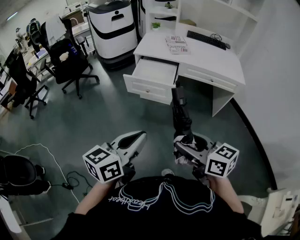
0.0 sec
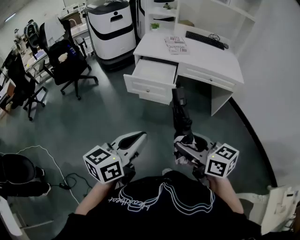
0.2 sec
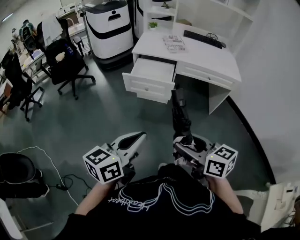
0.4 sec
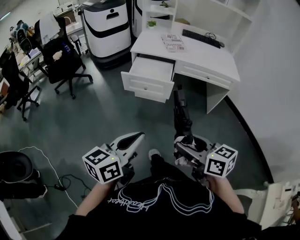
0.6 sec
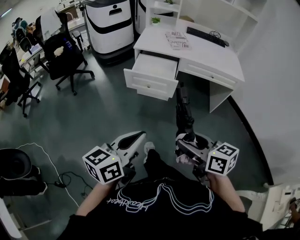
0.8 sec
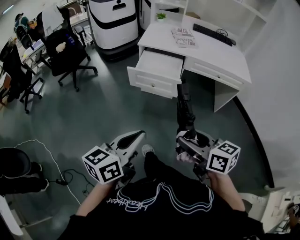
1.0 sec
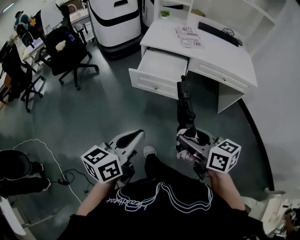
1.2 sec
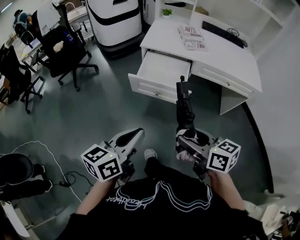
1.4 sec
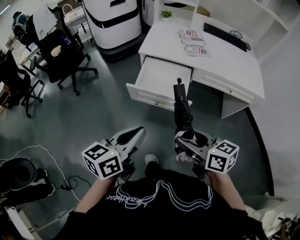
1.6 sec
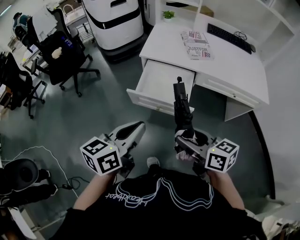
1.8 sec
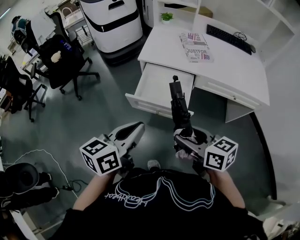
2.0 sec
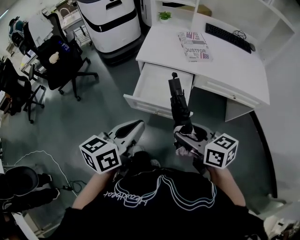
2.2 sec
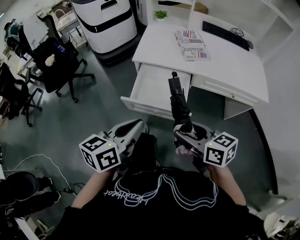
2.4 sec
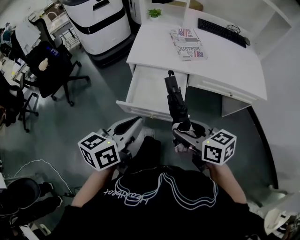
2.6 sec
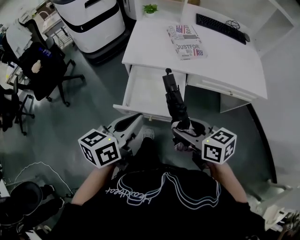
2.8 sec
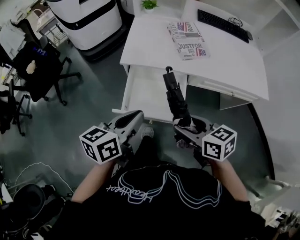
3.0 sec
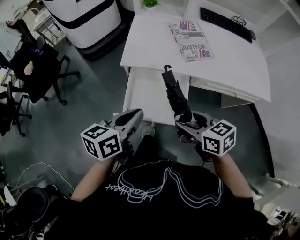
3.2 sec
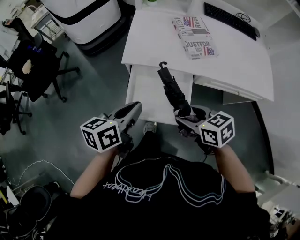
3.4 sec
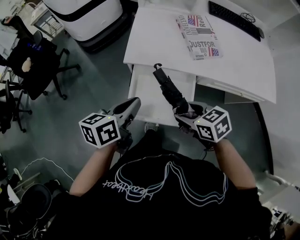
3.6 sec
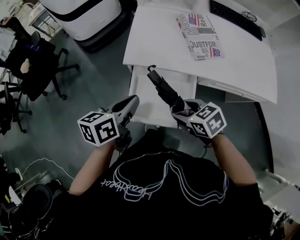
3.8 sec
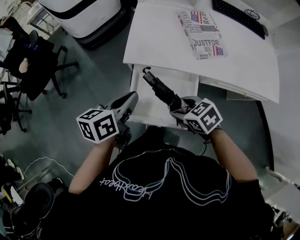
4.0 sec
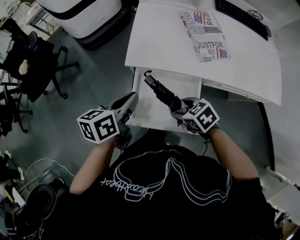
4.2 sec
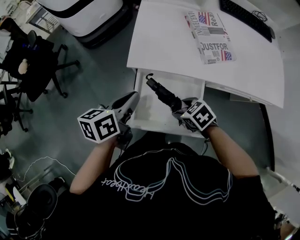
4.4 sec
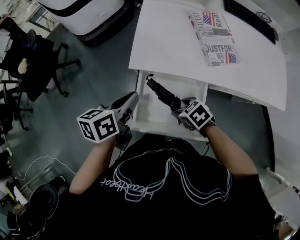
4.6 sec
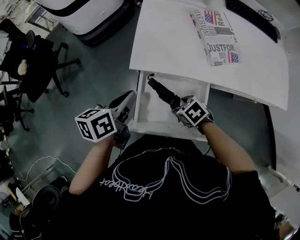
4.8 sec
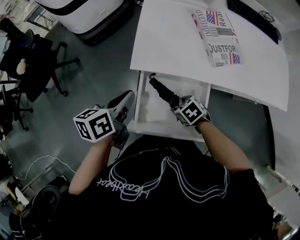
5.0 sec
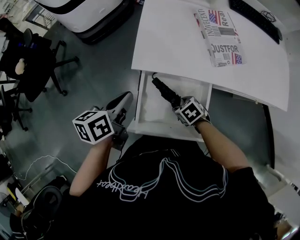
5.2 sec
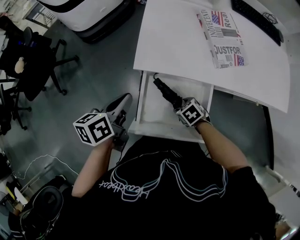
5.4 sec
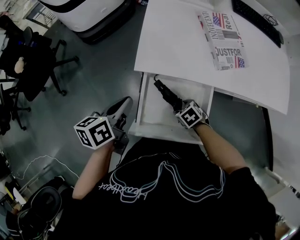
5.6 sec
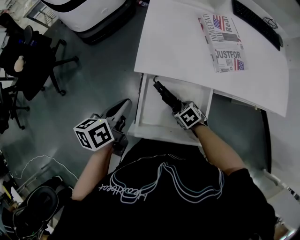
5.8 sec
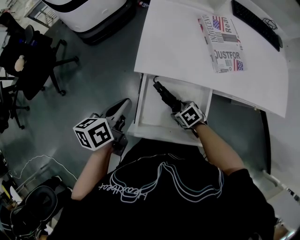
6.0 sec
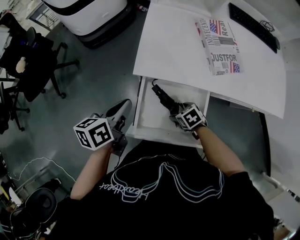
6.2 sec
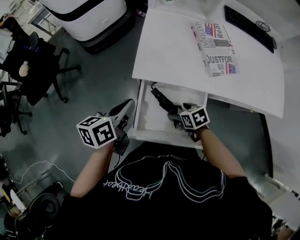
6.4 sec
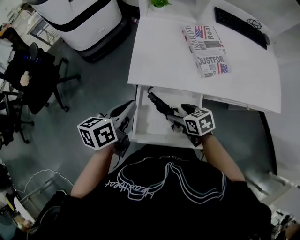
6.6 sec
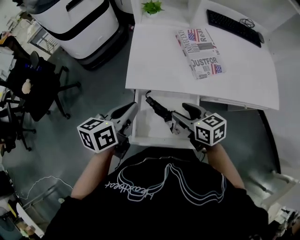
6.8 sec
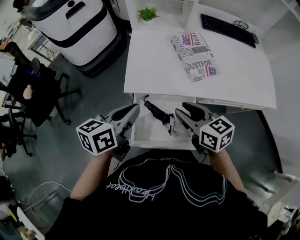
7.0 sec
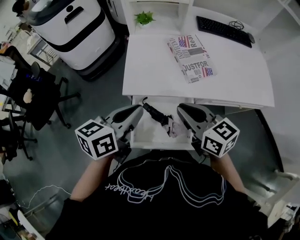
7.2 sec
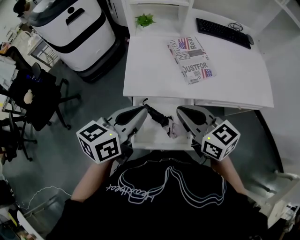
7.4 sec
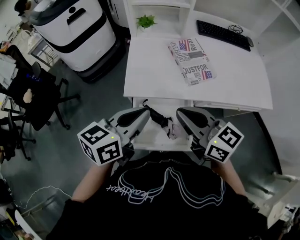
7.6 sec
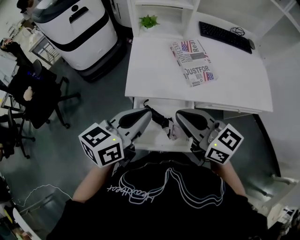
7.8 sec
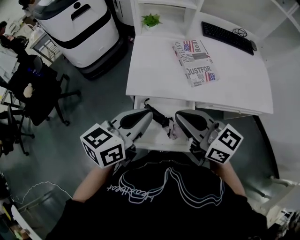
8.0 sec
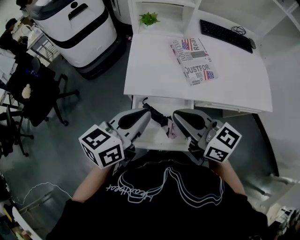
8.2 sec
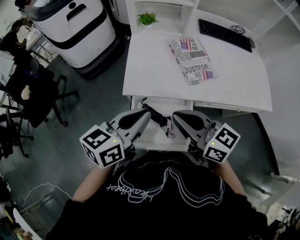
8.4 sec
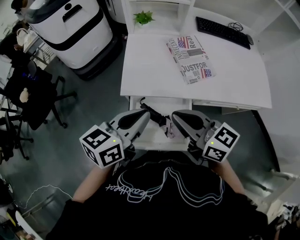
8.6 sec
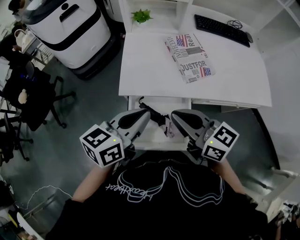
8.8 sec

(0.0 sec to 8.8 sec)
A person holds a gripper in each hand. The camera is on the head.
0.0 sec - 1.4 sec: The right gripper moves forward, some 15 cm, while the left gripper is displaced forward, to the left and downward by some 15 cm.
1.4 sec - 3.0 sec: The grippers both shift forward by some 30 cm.
3.0 sec - 4.4 sec: The right gripper moves downward and forward, about 20 cm, and tilts its fingers approximately 30 degrees downward; the left gripper goes approximately 20 cm forward and downward.
4.4 sec - 5.8 sec: The left gripper moves approximately 10 cm. The right gripper is displaced downward by roughly 15 cm.
5.8 sec - 7.4 sec: The left gripper moves upward, some 20 cm, and changes its angle by roughly 30 degrees. The right gripper shifts roughly 40 cm upward, points its fingers some 60 degrees further upward, and closes up.
7.4 sec - 8.8 sec: The grippers stay close to where they were, moving slightly.

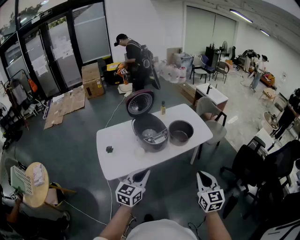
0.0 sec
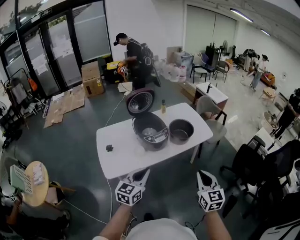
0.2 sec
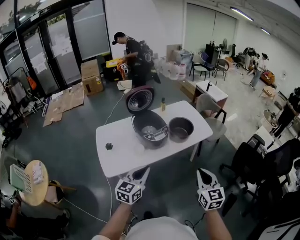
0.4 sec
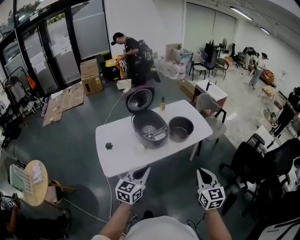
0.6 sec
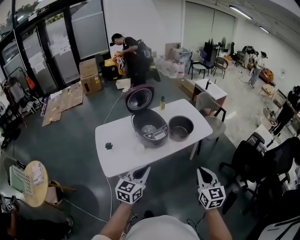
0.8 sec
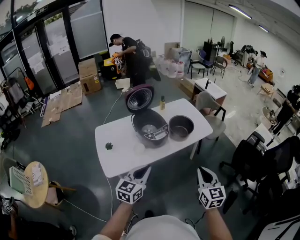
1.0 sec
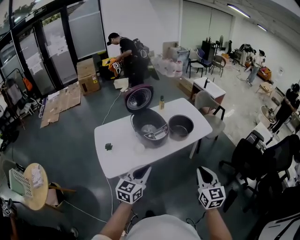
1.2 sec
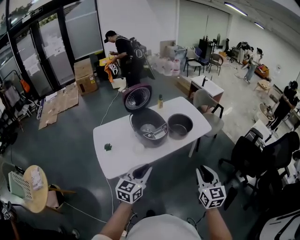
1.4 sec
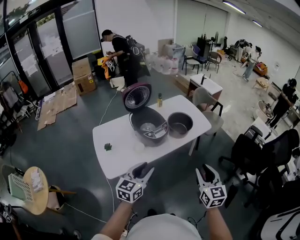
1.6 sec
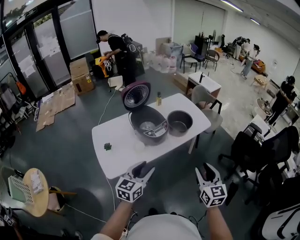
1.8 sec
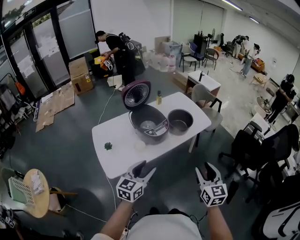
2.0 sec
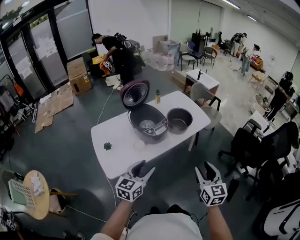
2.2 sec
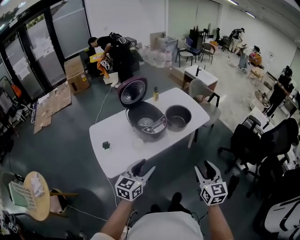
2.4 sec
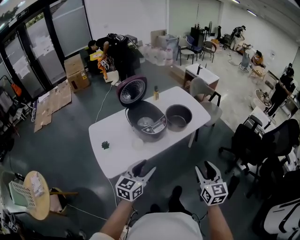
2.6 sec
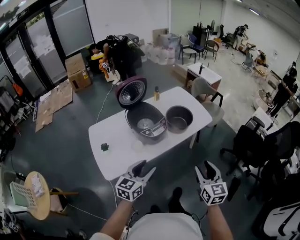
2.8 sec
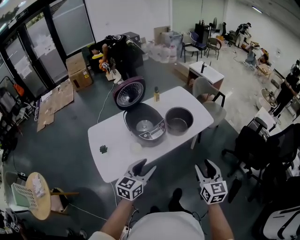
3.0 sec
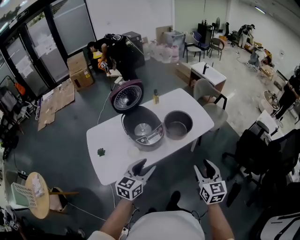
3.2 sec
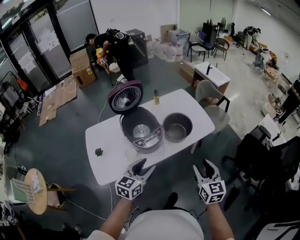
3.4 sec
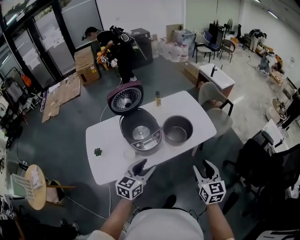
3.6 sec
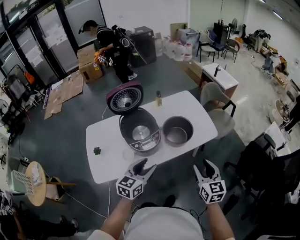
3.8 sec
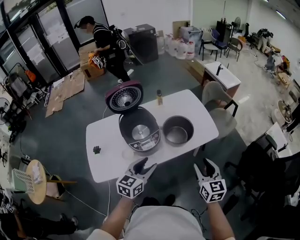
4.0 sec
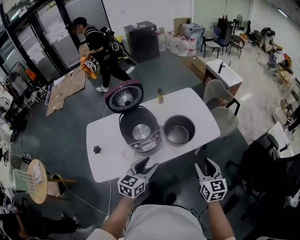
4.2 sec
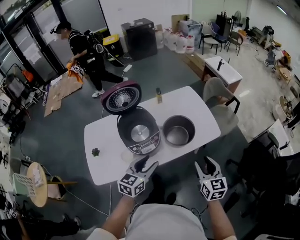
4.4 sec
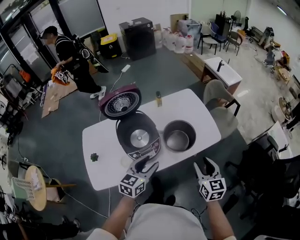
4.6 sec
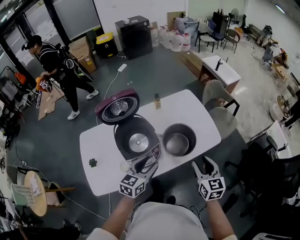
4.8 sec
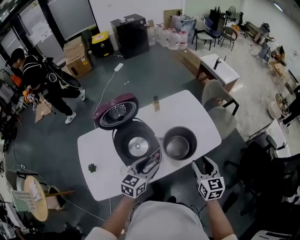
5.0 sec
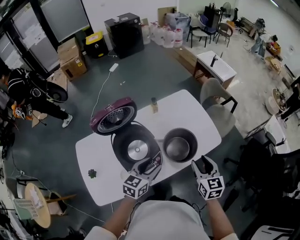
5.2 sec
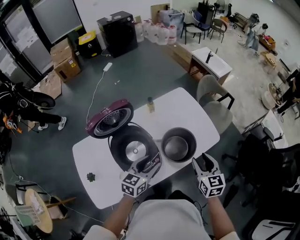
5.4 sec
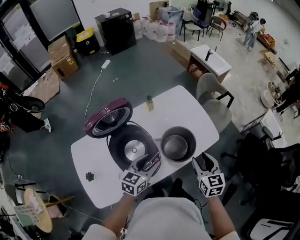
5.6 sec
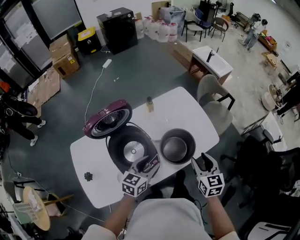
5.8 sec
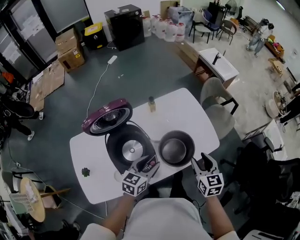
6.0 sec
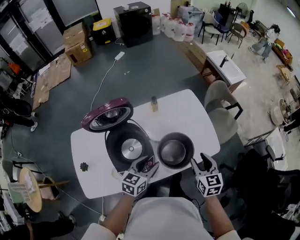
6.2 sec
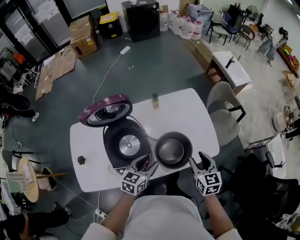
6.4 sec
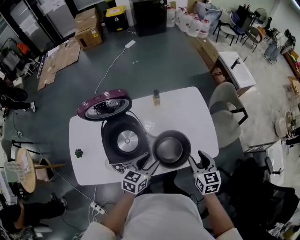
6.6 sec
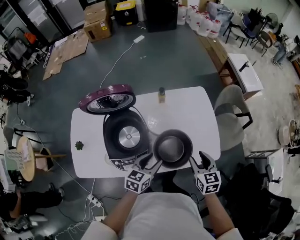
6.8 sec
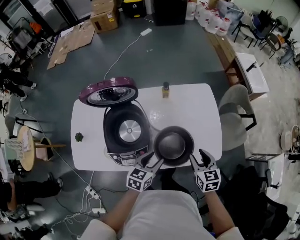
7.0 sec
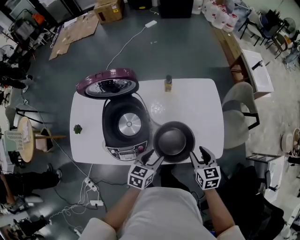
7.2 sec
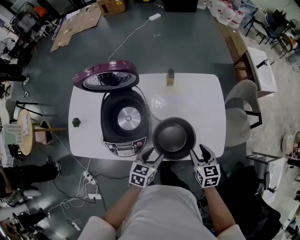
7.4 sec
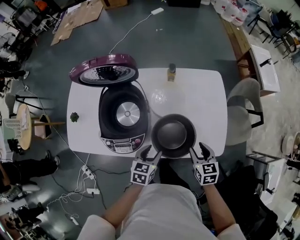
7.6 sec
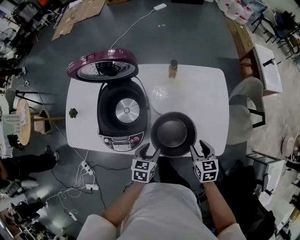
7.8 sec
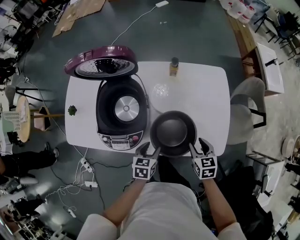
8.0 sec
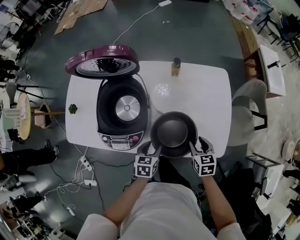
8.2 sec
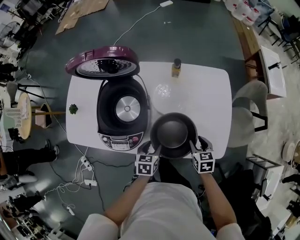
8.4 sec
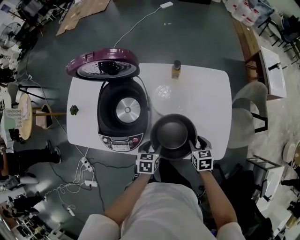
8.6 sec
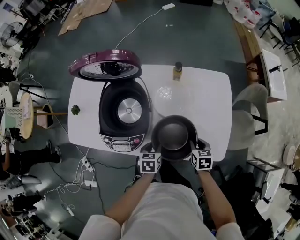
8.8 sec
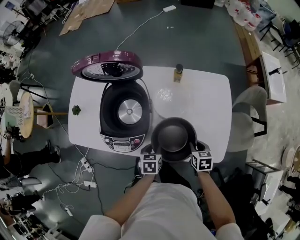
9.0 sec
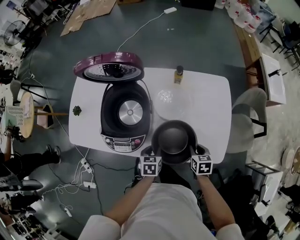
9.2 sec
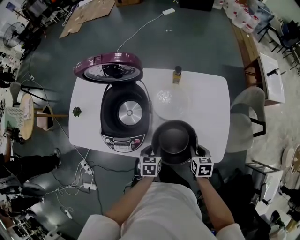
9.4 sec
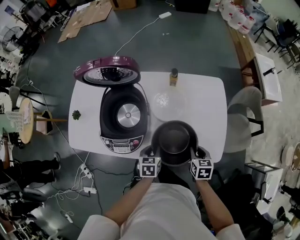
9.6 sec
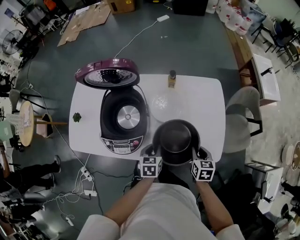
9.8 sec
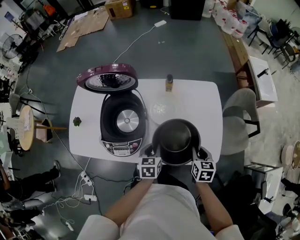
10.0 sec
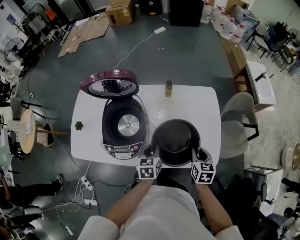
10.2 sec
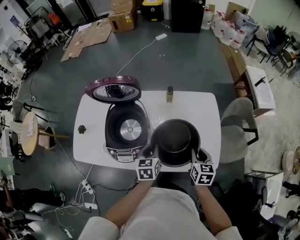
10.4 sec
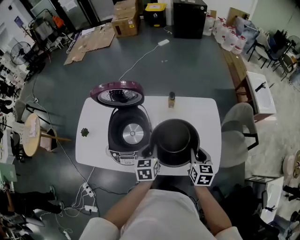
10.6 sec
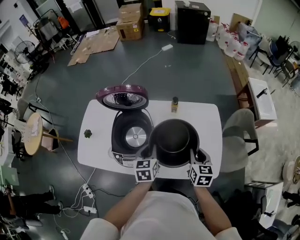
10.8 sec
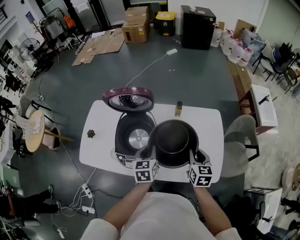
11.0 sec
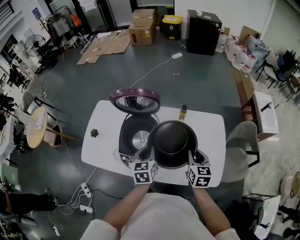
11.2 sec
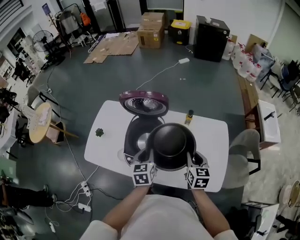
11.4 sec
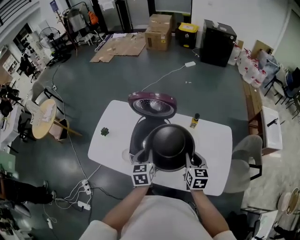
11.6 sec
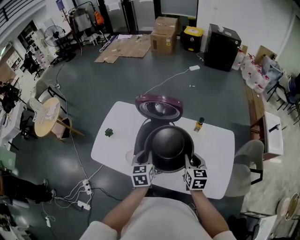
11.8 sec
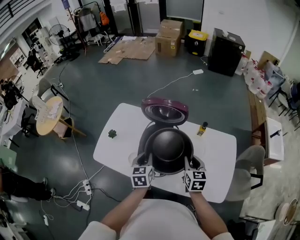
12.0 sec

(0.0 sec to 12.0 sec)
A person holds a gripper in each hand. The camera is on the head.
0.0 sec - 1.6 sec: The left gripper opens its fingers. Meanwhile the right gripper opens.
1.6 sec - 3.0 sec: Both grippers move forward, approximately 10 cm.
3.0 sec - 4.4 sec: The left gripper heads forward and to the right, covering approximately 20 cm. The right gripper heads forward, covering approximately 20 cm.
4.4 sec - 6.0 sec: Both grippers travel together forward, about 20 cm.
6.0 sec - 7.6 sec: Both grippers travel together downward, some 15 cm. The right gripper rotates approximately 30 degrees. Meanwhile the left gripper swivels about 40 degrees.
7.6 sec - 9.0 sec: The grippers both shift downward by approximately 10 cm. The left gripper changes its angle by some 20 degrees; the right gripper closes up.
9.0 sec - 10.4 sec: The right gripper travels upward by about 15 cm, and swivels about 20 degrees. Meanwhile the left gripper heads upward and forward, covering approximately 15 cm, and turns by about 20 degrees.
10.4 sec - 12.0 sec: The left gripper is displaced to the left and upward by roughly 20 cm, and changes its angle by about 20 degrees; the right gripper is displaced to the left, forward and upward by roughly 25 cm, and swivels approximately 20 degrees.

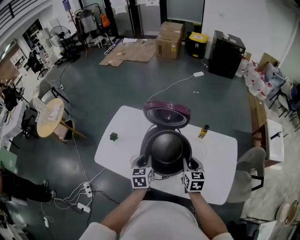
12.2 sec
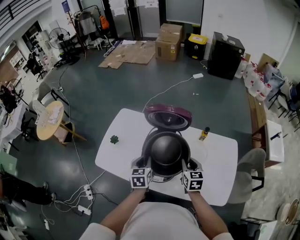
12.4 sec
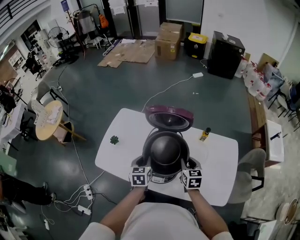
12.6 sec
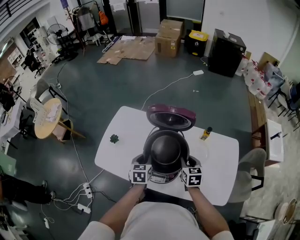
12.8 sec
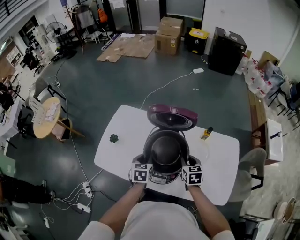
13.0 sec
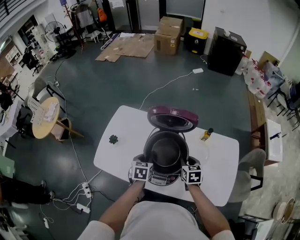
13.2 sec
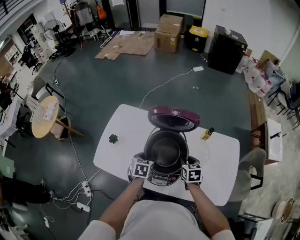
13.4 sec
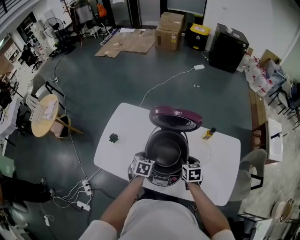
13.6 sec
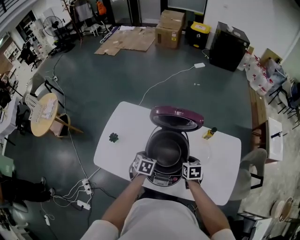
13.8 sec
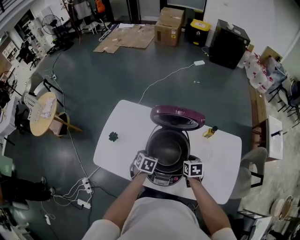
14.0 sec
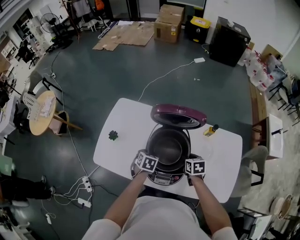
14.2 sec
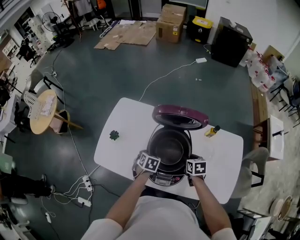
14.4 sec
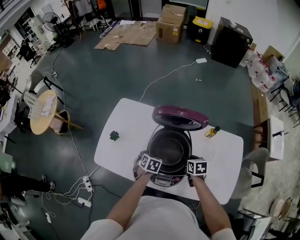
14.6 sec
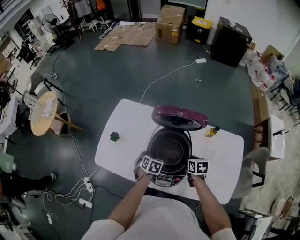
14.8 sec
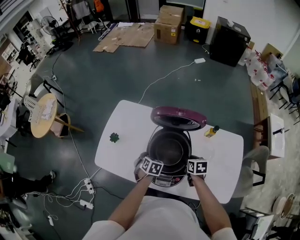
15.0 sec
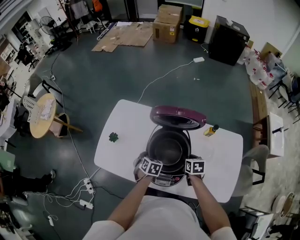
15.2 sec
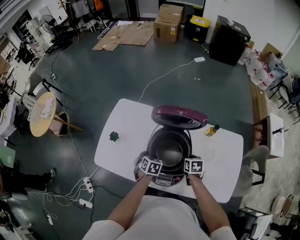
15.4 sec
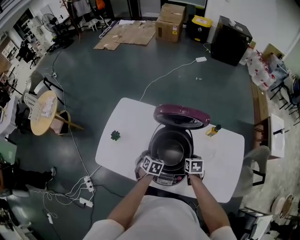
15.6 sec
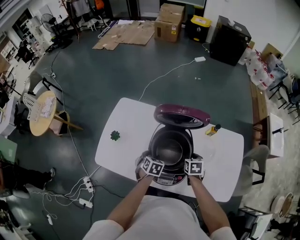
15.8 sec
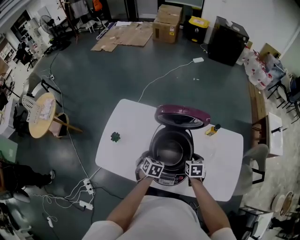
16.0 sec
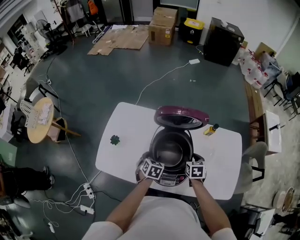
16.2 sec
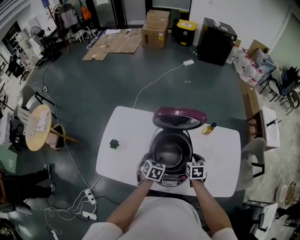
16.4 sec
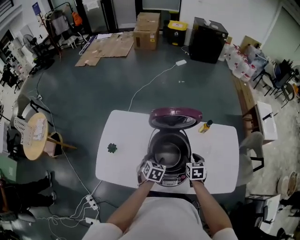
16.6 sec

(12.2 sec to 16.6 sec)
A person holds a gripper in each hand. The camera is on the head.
12.2 sec - 13.6 sec: The grippers both shift downward and forward by roughly 10 cm. The left gripper rotates approximately 30 degrees, while the right gripper changes its angle by approximately 20 degrees.
13.6 sec - 15.2 sec: The left gripper heads downward, covering some 5 cm.
15.2 sec - 16.6 sec: The left gripper shifts some 5 cm upward.
